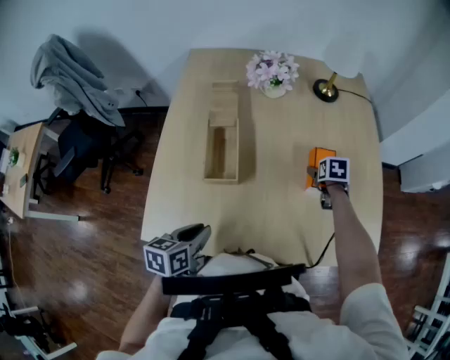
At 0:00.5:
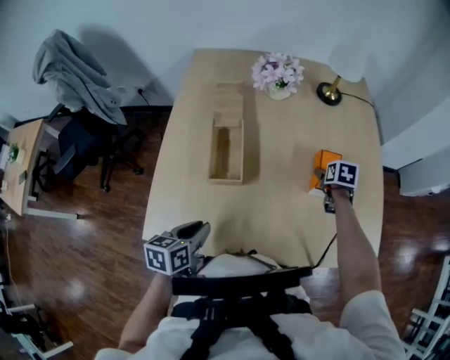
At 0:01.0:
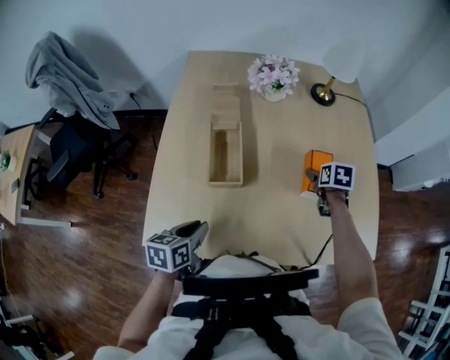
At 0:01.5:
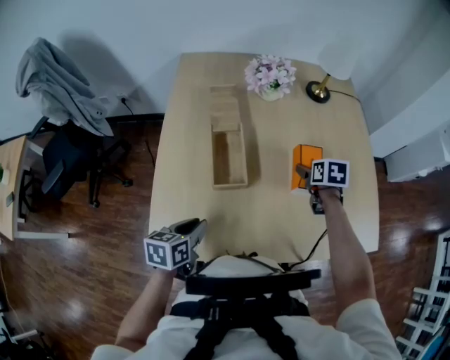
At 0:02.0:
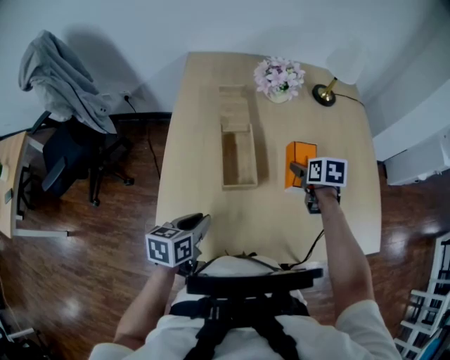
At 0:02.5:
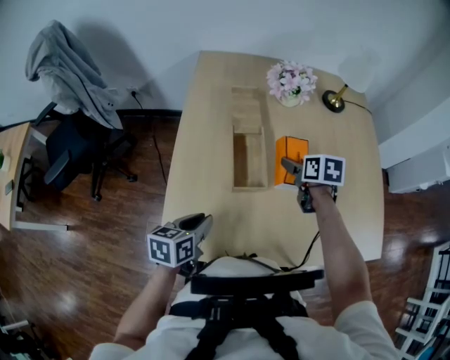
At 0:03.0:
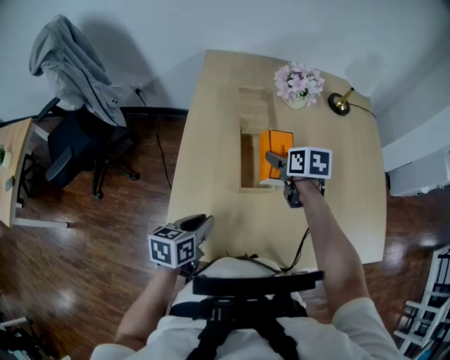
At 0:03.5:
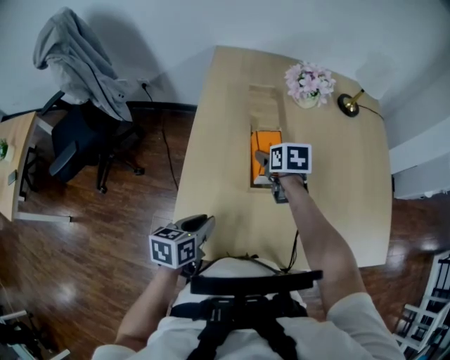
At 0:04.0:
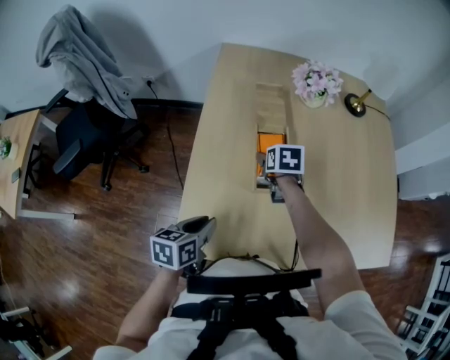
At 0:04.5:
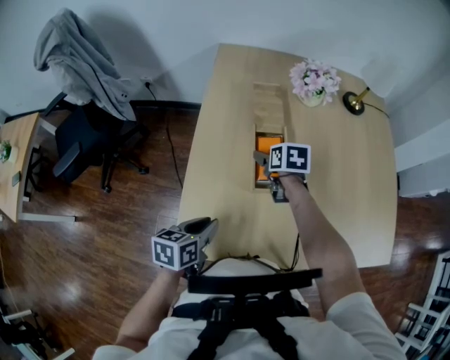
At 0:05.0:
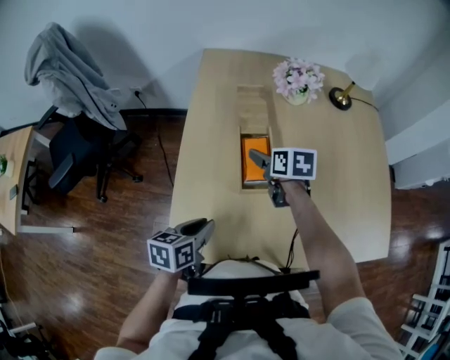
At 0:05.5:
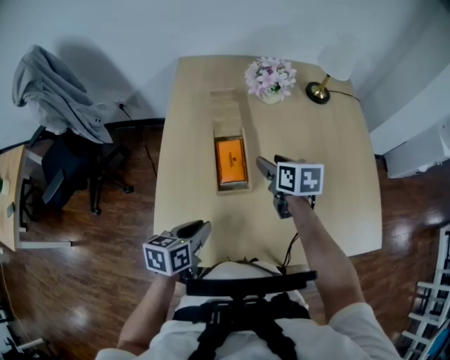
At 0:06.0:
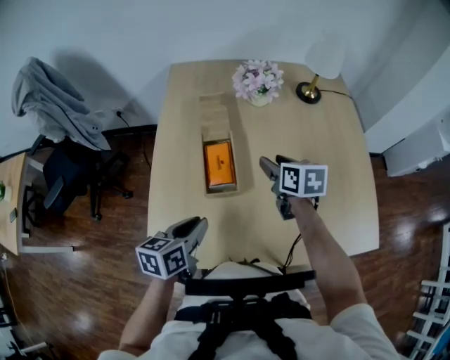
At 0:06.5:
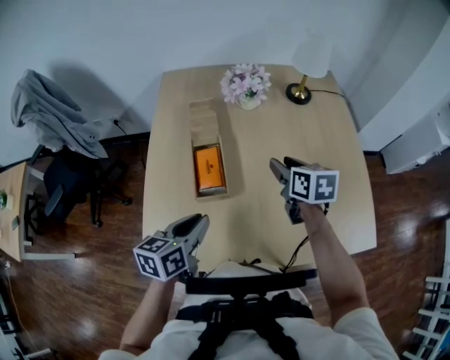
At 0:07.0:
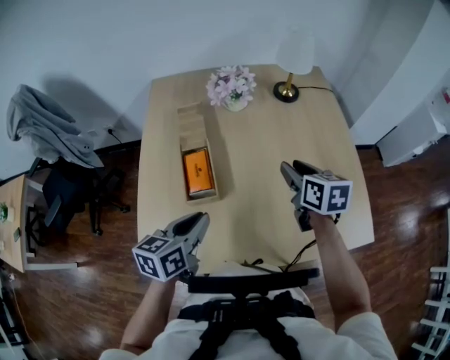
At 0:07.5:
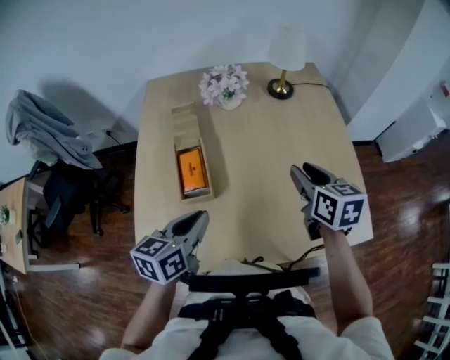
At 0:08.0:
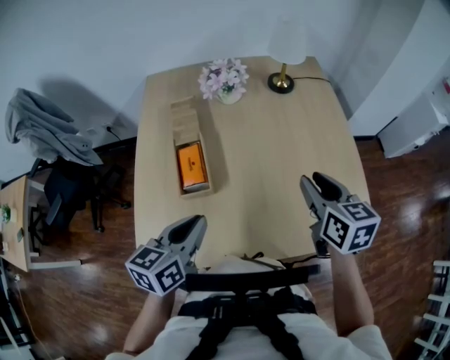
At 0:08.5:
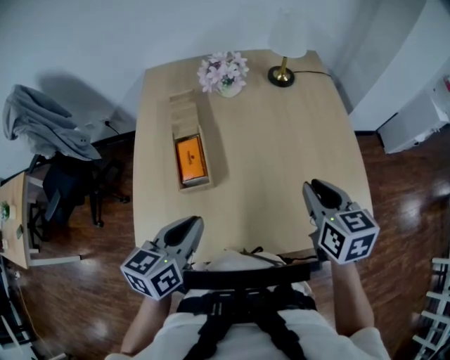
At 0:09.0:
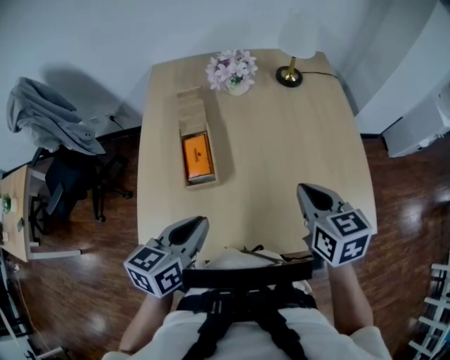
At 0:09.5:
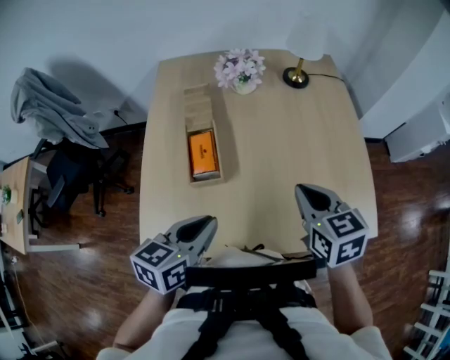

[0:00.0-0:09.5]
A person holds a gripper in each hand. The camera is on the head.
0:00.0 to 0:02.0: The right gripper is displaced to the left, upward and backward by approximately 20 cm, while the left gripper is displaced to the left by about 10 cm.
0:02.0 to 0:04.0: The left gripper shifts about 5 cm to the left. The right gripper travels to the left by approximately 25 cm.
0:04.0 to 0:05.5: The left gripper goes some 10 cm to the right. Meanwhile the right gripper heads to the right and upward, covering some 15 cm.
0:05.5 to 0:07.5: The two grippers go about 20 cm to the right and upward.
0:07.5 to 0:09.5: The left gripper shifts by about 5 cm. Meanwhile the right gripper moves backward, about 10 cm.

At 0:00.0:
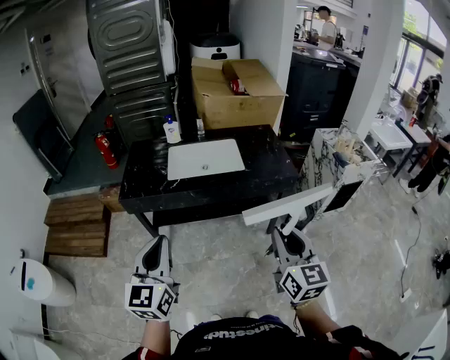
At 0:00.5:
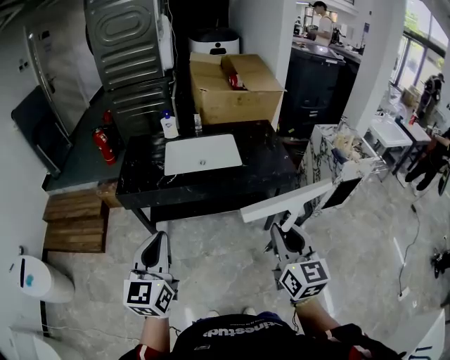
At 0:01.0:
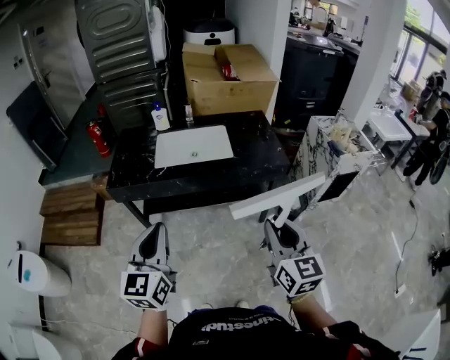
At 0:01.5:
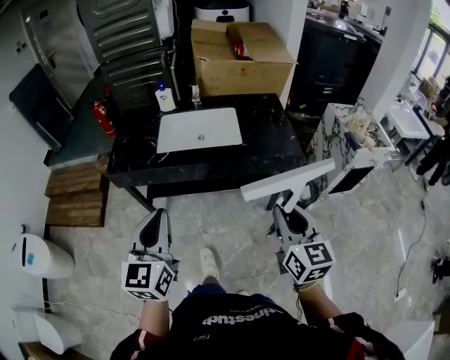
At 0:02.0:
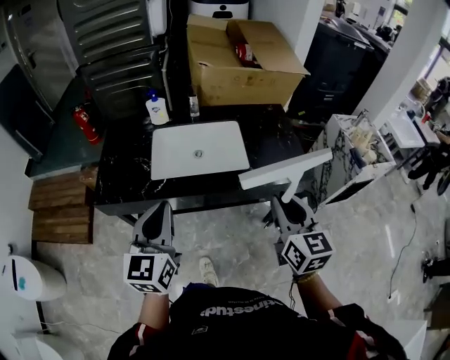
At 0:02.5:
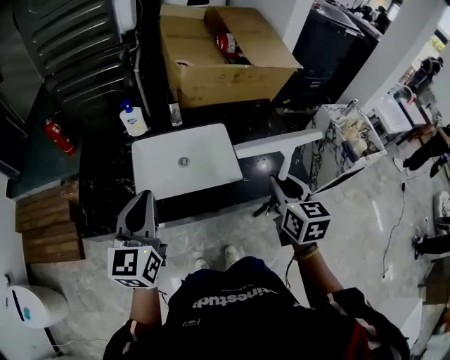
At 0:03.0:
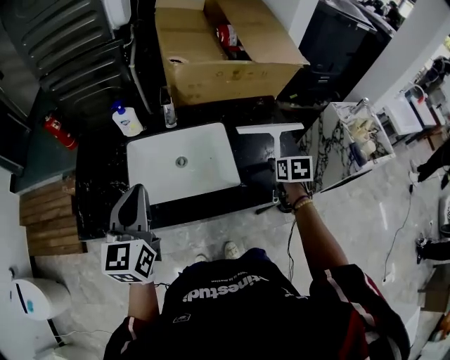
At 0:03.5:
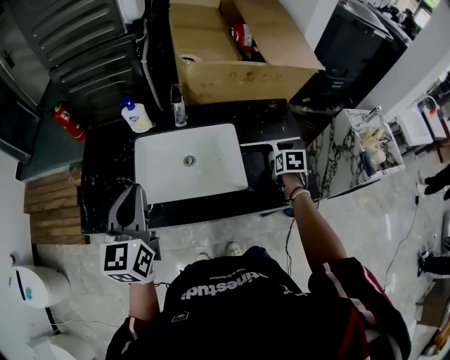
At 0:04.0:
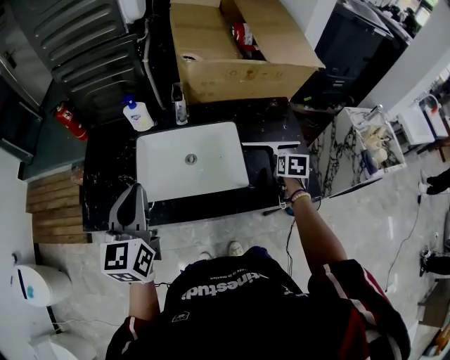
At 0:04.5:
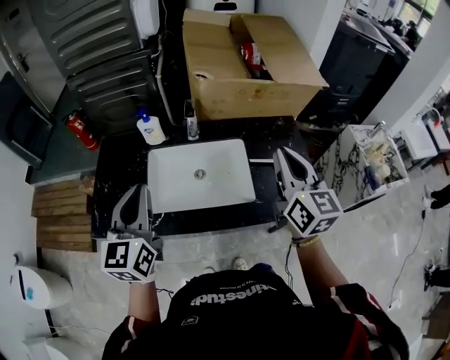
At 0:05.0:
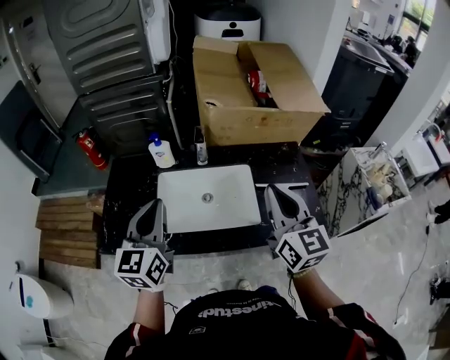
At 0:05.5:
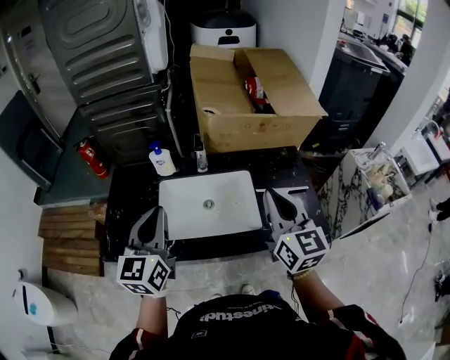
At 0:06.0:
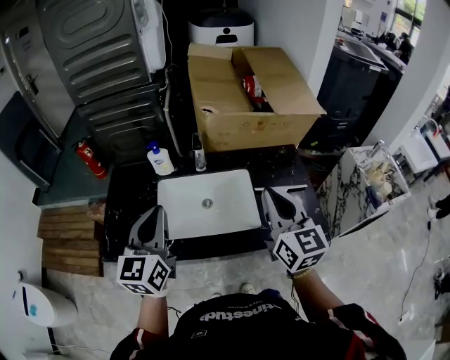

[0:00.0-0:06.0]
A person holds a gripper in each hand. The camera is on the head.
0:00.0 to 0:02.0: Both grippers move forward, about 30 cm.
0:02.0 to 0:04.0: The left gripper shifts roughly 20 cm forward. The right gripper shifts approximately 40 cm forward and downward, points its fingers roughly 40 degrees further downward, and opens its fingers.
0:04.0 to 0:06.0: The right gripper heads upward and to the left, covering approximately 35 cm, tilts its fingers some 50 degrees upward, and closes.

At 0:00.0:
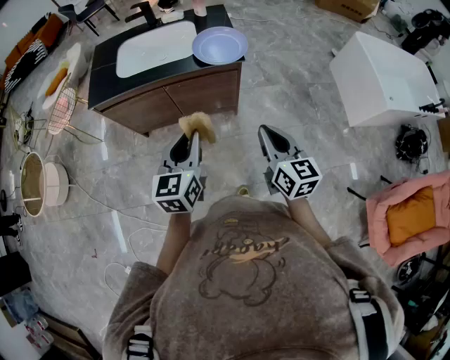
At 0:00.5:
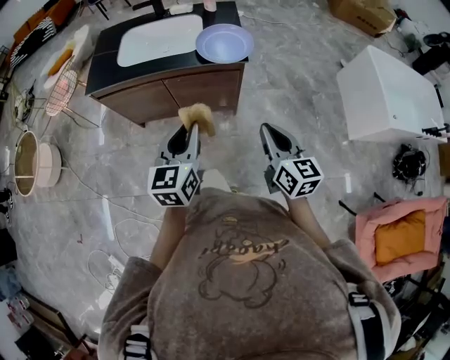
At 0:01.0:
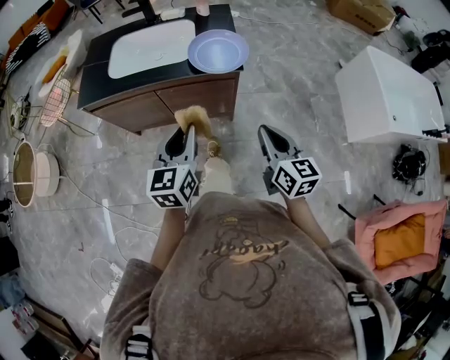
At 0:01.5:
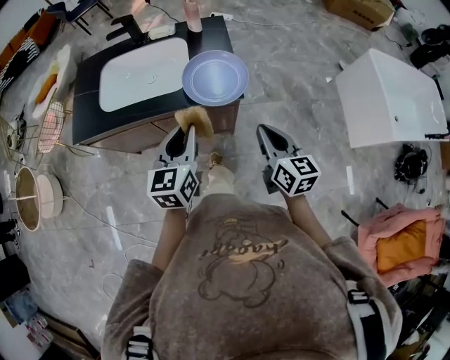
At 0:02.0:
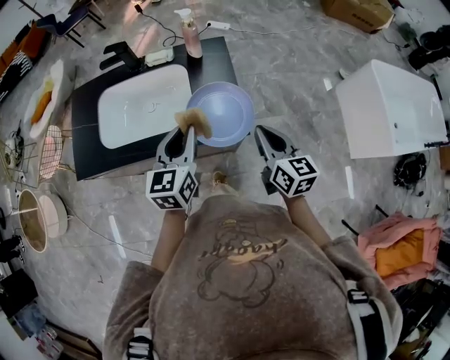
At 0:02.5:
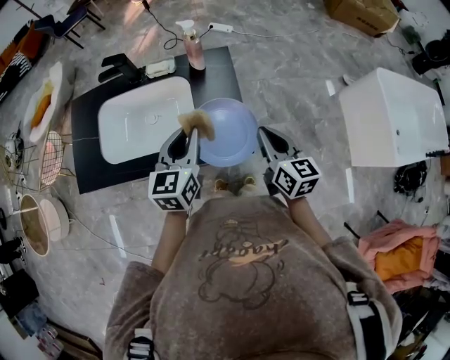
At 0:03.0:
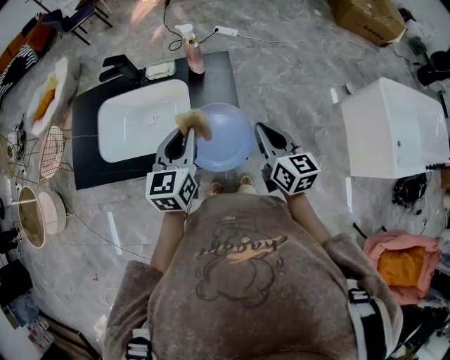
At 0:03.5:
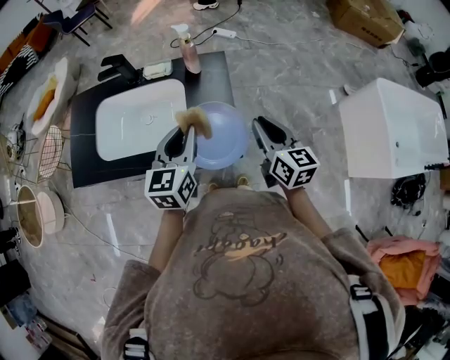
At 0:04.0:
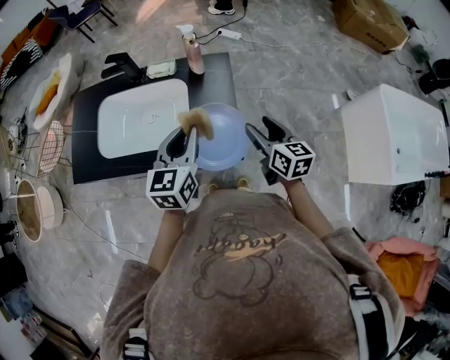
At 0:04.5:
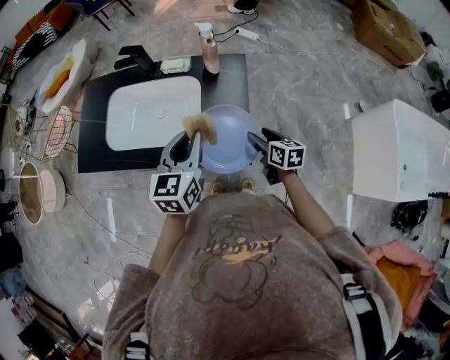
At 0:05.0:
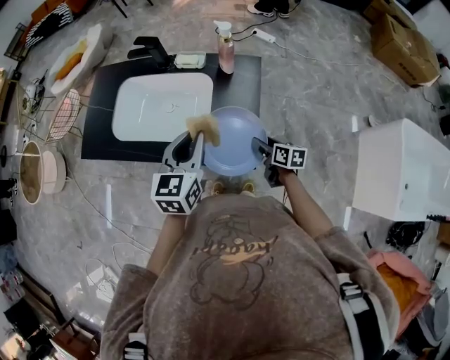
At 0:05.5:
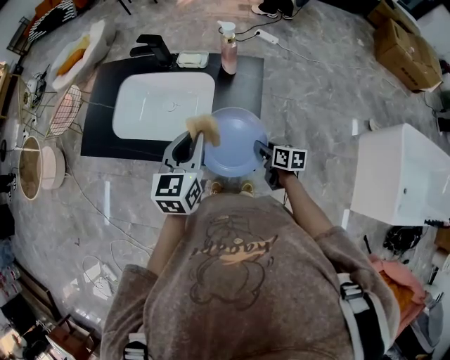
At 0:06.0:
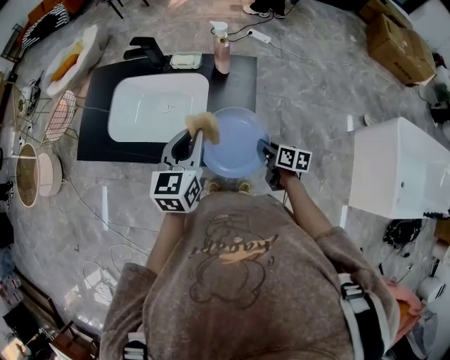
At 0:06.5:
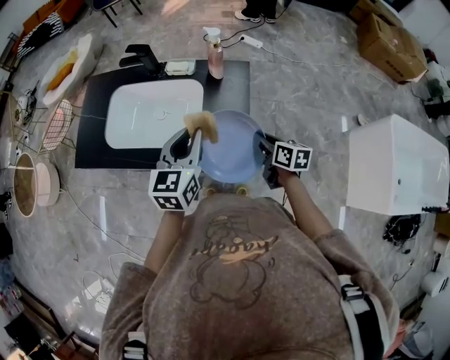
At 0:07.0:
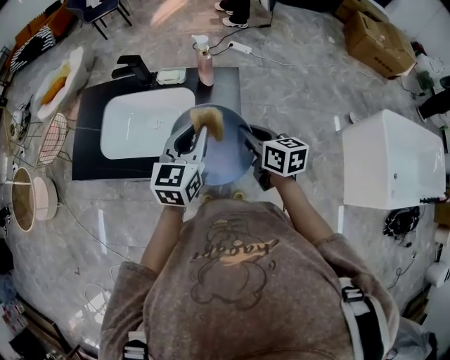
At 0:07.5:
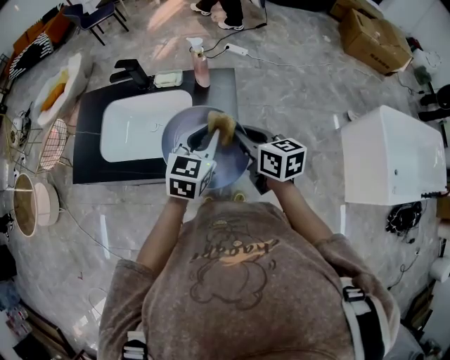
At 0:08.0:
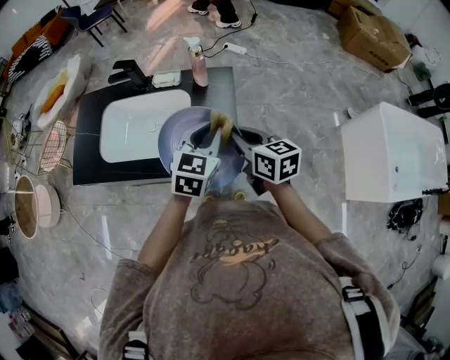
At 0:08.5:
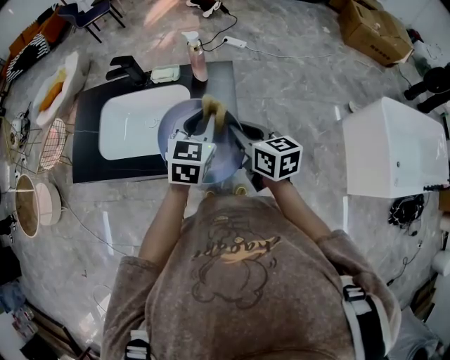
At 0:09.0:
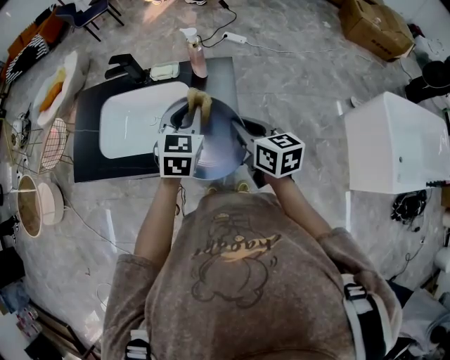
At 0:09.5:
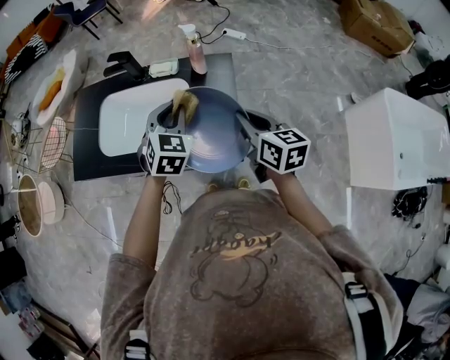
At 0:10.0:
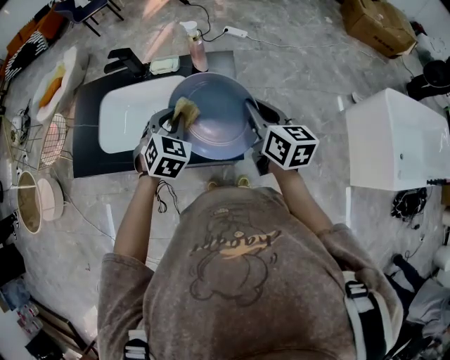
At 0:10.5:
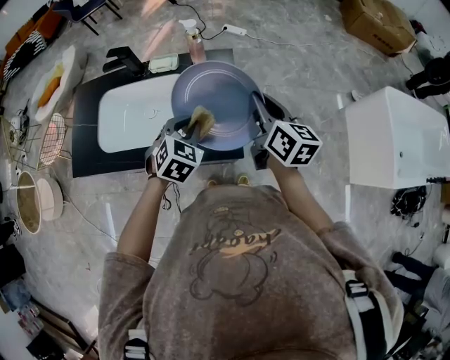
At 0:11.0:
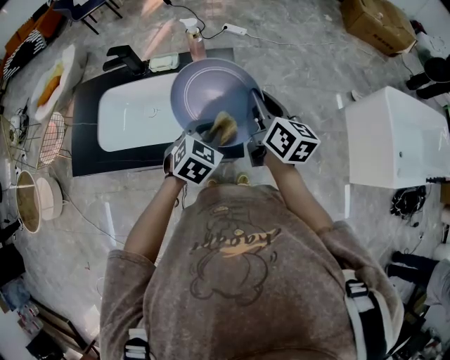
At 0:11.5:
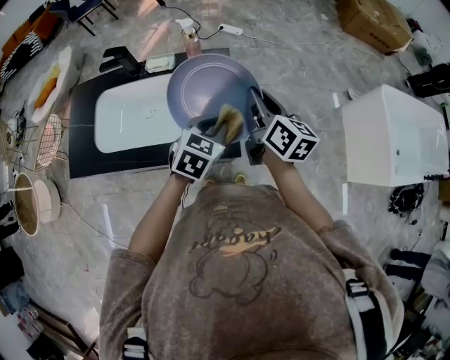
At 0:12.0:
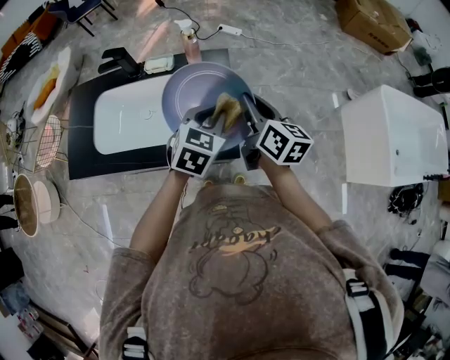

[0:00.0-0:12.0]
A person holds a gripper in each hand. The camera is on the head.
0:00.0 to 0:02.0: The pair of grippers is taken forward, some 40 cm.
0:02.0 to 0:04.0: The right gripper goes some 10 cm forward, and opens up. Meanwhile the left gripper shifts approximately 5 cm forward.
0:04.0 to 0:06.0: The right gripper moves downward, some 15 cm, swivels about 30 degrees, and closes.
0:06.0 to 0:08.0: The right gripper moves upward, roughly 20 cm, and changes its angle by roughly 30 degrees. Meanwhile the left gripper shifts roughly 10 cm to the right, and turns by roughly 20 degrees.
0:08.0 to 0:10.0: The right gripper shifts approximately 5 cm to the right; the left gripper moves to the left, roughly 10 cm, and turns by some 30 degrees.
0:10.0 to 0:12.0: The left gripper shifts approximately 10 cm to the right, and turns by approximately 20 degrees.
